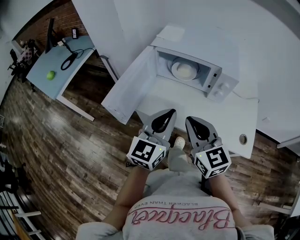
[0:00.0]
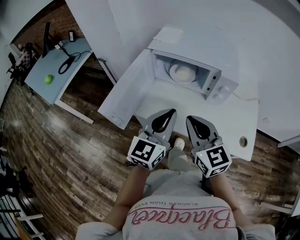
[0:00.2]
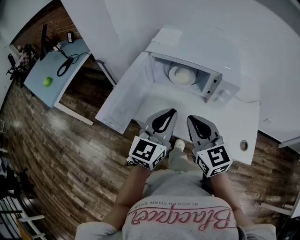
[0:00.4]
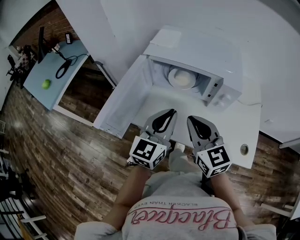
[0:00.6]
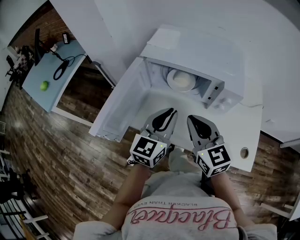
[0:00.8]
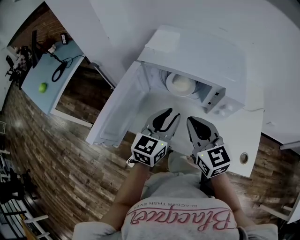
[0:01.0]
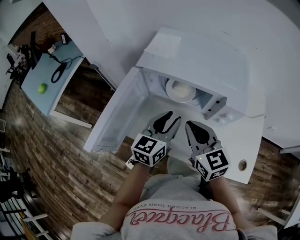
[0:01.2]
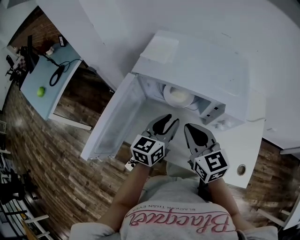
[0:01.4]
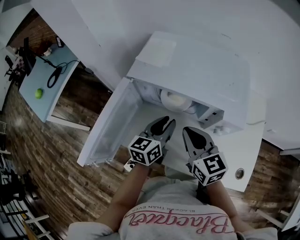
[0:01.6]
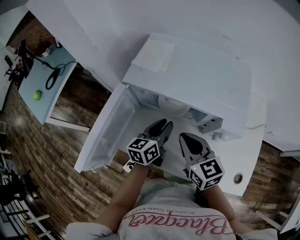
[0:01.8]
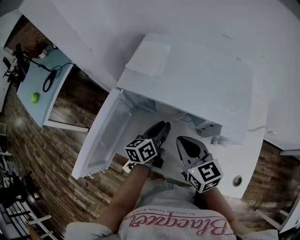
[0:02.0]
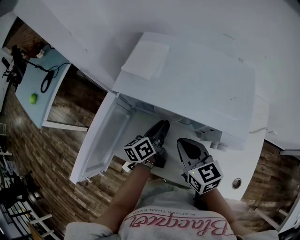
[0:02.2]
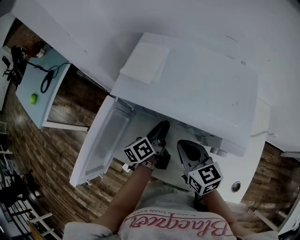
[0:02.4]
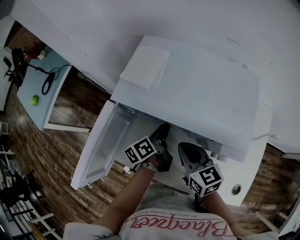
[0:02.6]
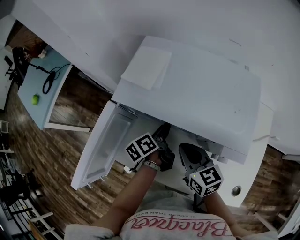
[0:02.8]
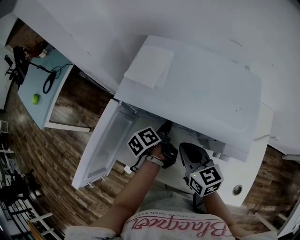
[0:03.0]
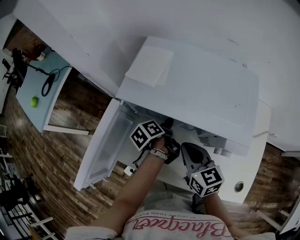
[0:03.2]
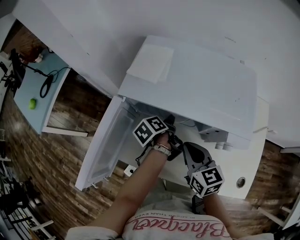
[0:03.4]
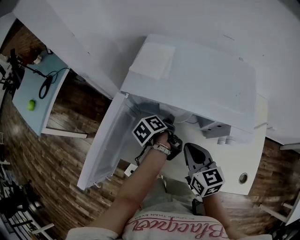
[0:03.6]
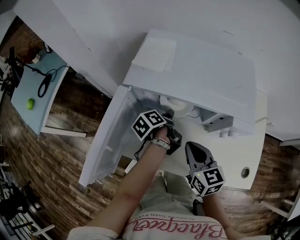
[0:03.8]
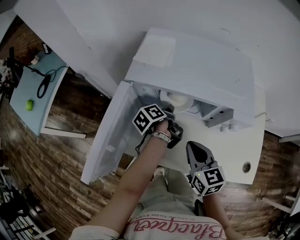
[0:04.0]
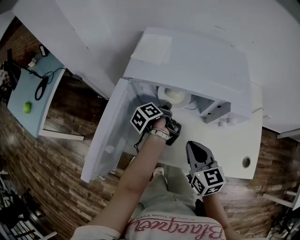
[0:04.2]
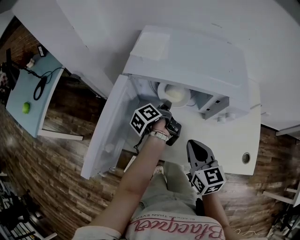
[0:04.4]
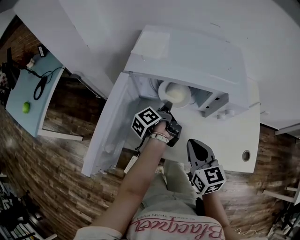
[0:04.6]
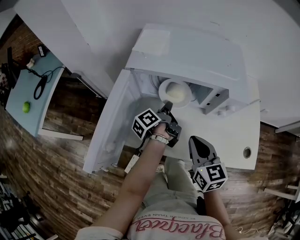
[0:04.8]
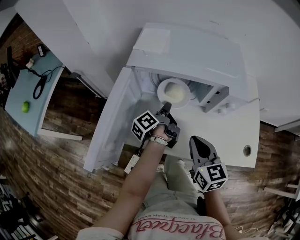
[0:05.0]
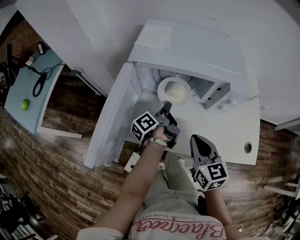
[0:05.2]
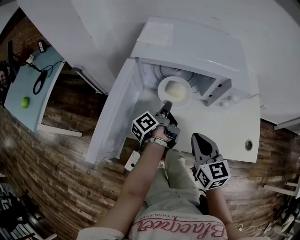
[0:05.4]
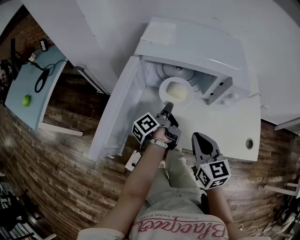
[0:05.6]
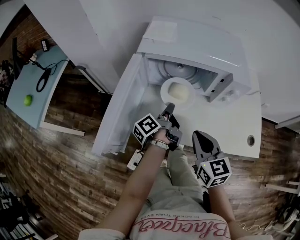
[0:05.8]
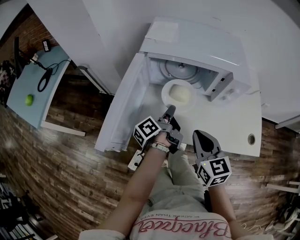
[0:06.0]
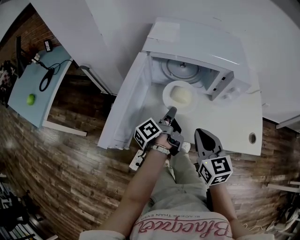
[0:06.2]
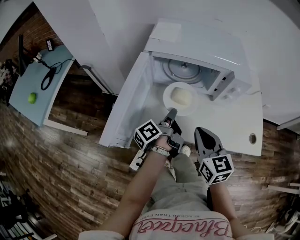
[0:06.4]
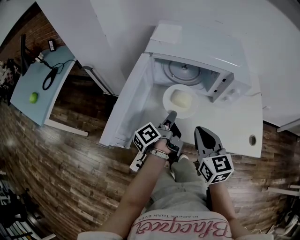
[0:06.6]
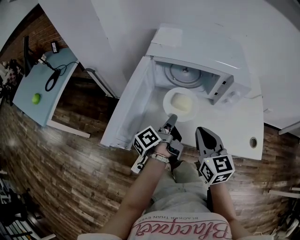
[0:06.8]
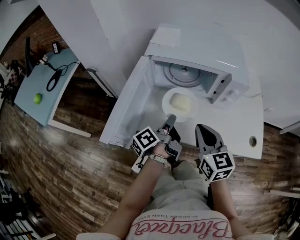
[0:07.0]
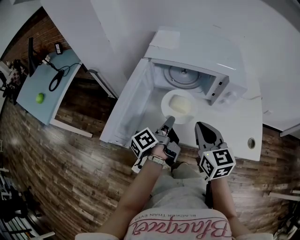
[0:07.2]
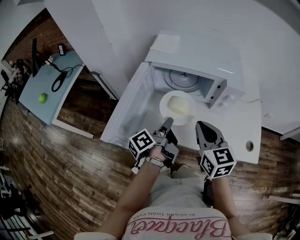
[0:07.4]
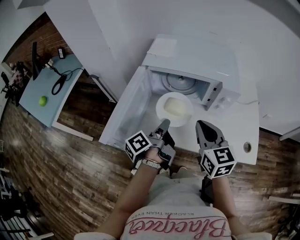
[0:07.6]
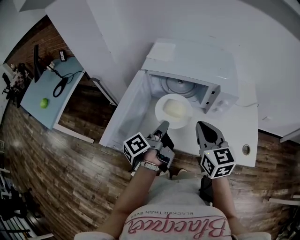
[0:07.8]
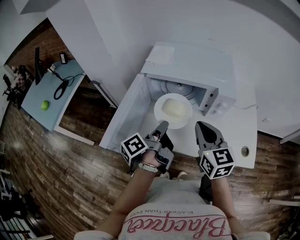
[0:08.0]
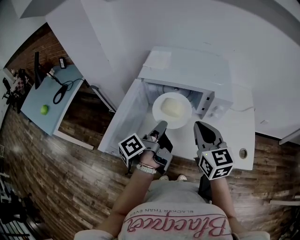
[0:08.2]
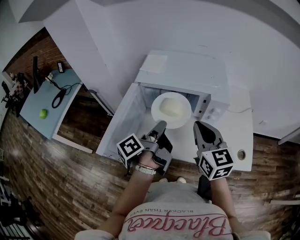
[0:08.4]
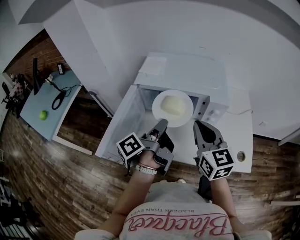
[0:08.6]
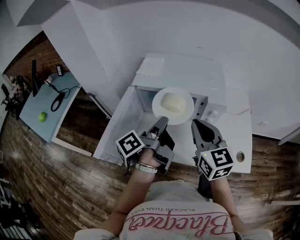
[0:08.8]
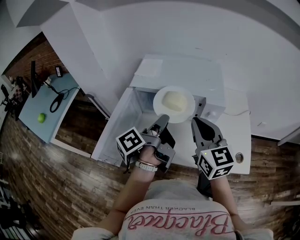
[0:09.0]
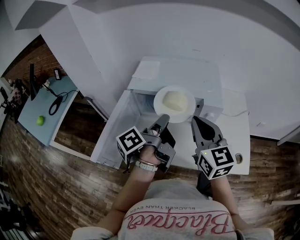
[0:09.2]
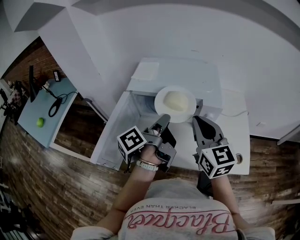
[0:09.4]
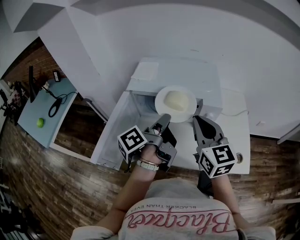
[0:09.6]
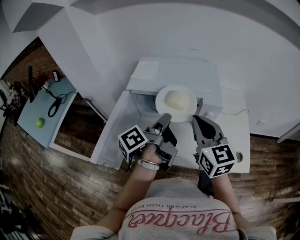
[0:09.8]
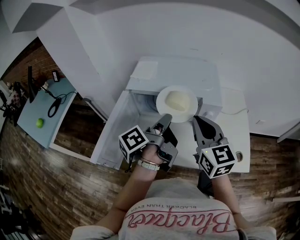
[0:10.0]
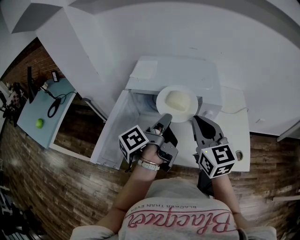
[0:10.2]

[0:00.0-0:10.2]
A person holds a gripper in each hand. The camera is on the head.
0:00.0 to 0:01.4: The right gripper travels forward by about 20 cm; the left gripper moves forward and downward, approximately 25 cm, turns by roughly 20 degrees, and opens.
0:01.4 to 0:03.0: The right gripper heads downward and forward, covering roughly 10 cm. Meanwhile the left gripper goes some 15 cm downward and forward, and rolls counterclockwise, seen from behind, by approximately 60 degrees.
0:03.0 to 0:04.4: The left gripper closes its fingers. Meanwhile the right gripper goes roughly 10 cm backward.
0:04.4 to 0:05.8: The left gripper goes approximately 10 cm backward; the right gripper heads backward, covering roughly 5 cm.
0:05.8 to 0:07.2: The left gripper heads backward, covering about 10 cm.
0:07.2 to 0:08.8: Both grippers move upward, about 15 cm.
0:08.8 to 0:10.2: The grippers make only small movements.

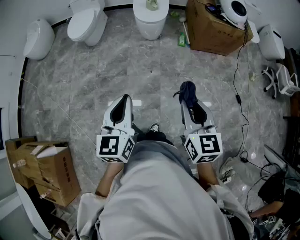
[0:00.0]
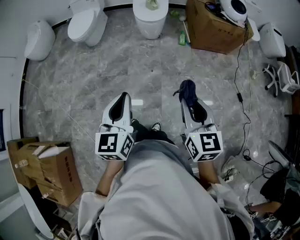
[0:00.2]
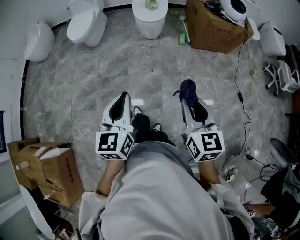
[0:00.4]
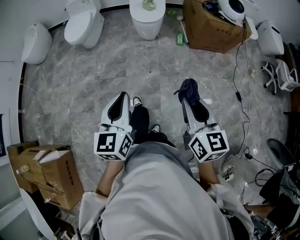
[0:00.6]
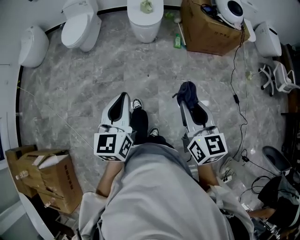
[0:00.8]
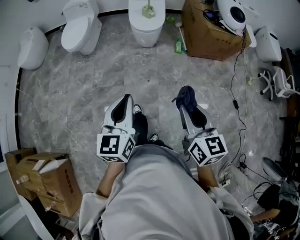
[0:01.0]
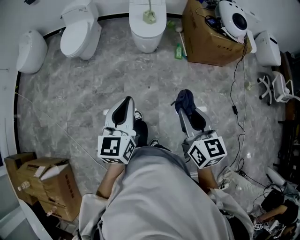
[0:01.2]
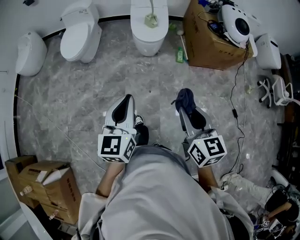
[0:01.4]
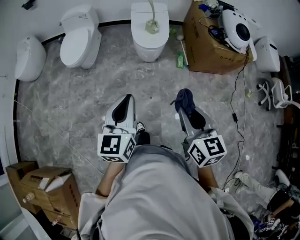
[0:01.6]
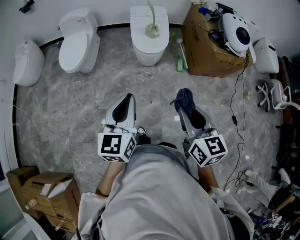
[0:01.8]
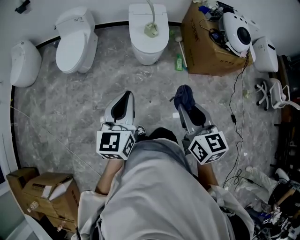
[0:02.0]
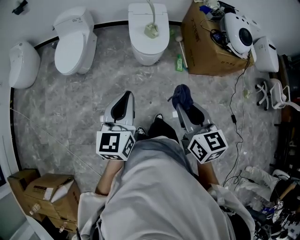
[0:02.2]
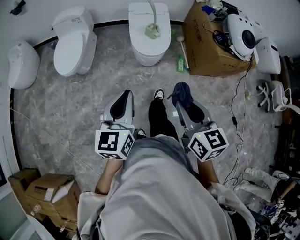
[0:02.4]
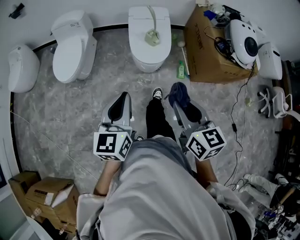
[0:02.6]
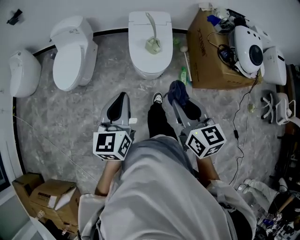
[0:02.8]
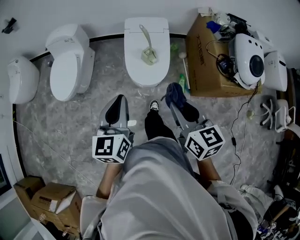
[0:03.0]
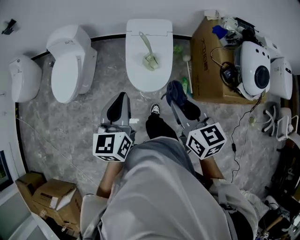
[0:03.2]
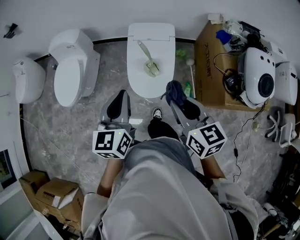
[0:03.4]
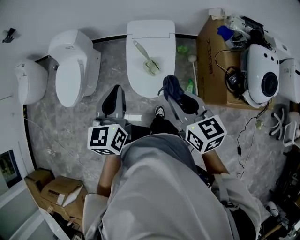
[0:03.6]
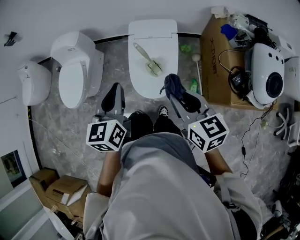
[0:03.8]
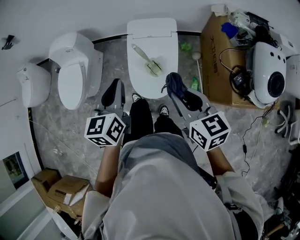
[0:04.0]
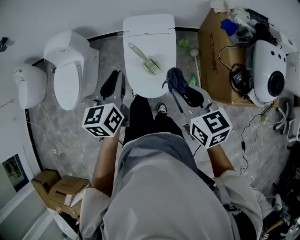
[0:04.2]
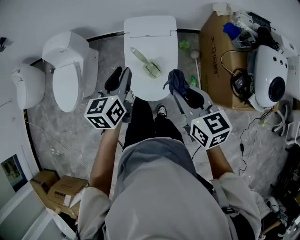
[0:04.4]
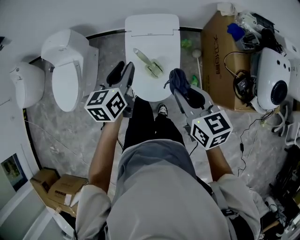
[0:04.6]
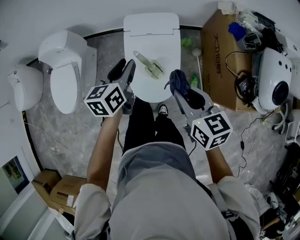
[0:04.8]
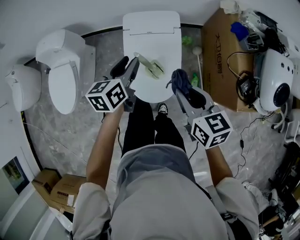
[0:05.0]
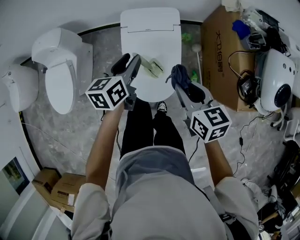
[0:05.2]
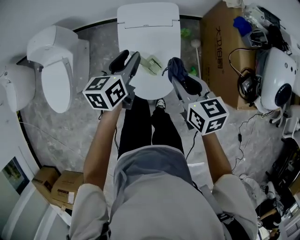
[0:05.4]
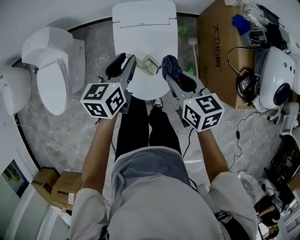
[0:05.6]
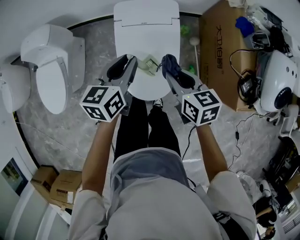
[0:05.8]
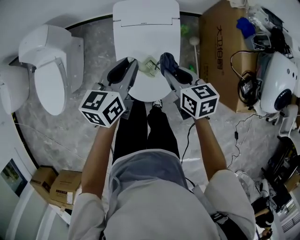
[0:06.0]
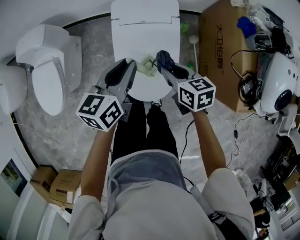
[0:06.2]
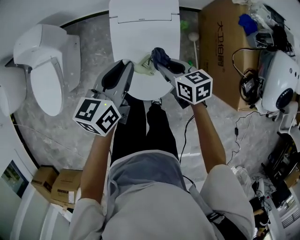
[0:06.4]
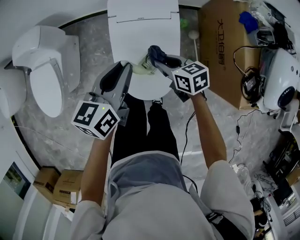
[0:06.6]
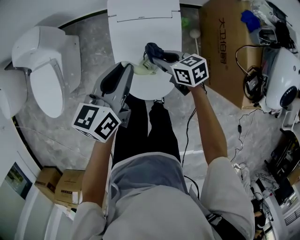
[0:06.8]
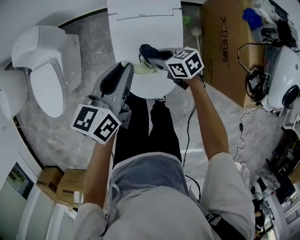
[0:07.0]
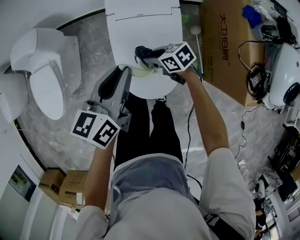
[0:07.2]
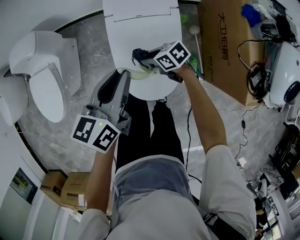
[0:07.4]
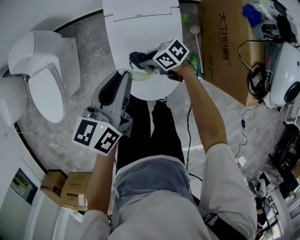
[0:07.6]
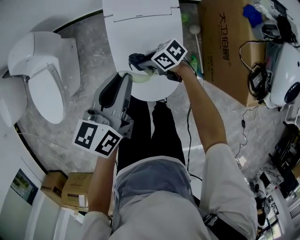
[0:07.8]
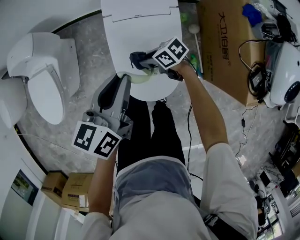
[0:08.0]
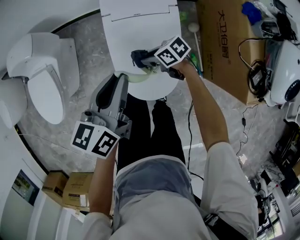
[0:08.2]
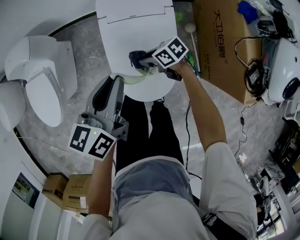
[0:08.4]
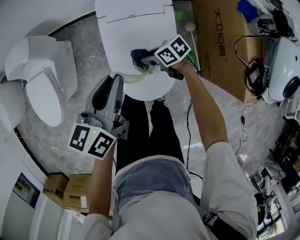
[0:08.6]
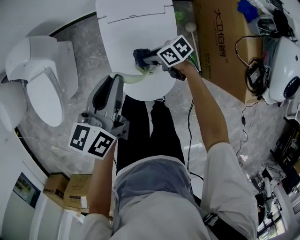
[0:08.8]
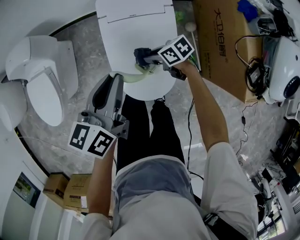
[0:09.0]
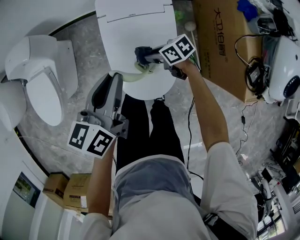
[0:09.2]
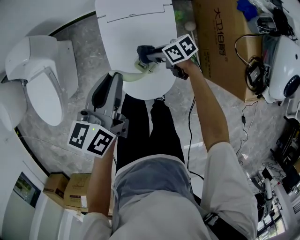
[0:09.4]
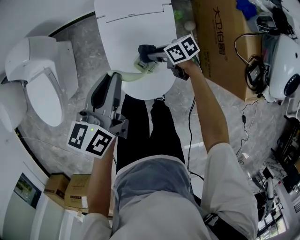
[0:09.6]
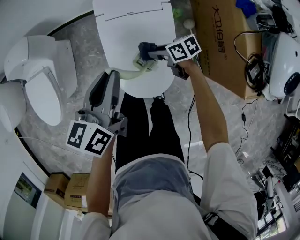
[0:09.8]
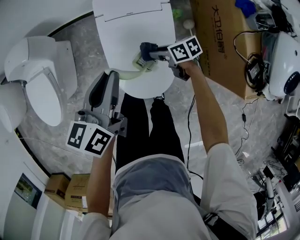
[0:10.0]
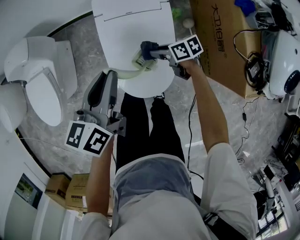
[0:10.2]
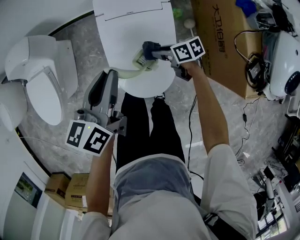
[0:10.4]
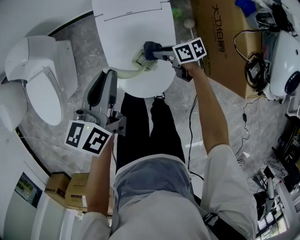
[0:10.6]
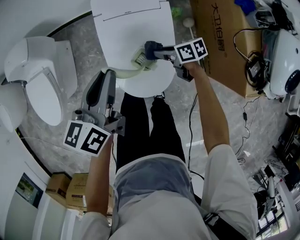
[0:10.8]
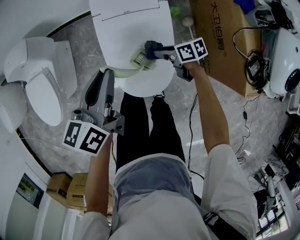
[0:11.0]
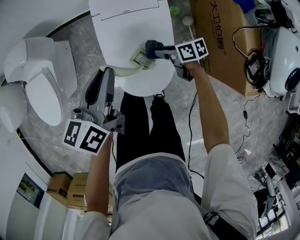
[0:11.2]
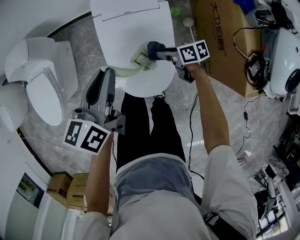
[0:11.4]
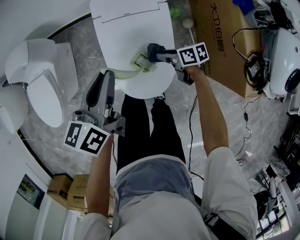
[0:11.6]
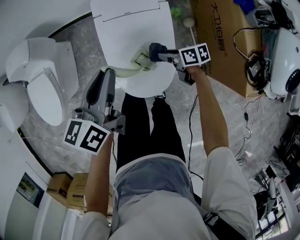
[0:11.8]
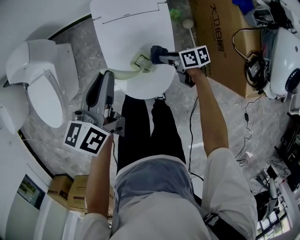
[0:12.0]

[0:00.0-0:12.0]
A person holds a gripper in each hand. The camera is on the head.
0:00.0 to 0:01.6: The grippers both shift forward by about 30 cm.
0:01.6 to 0:03.0: Both grippers are carried forward, about 40 cm.
0:03.0 to 0:04.4: The grippers both shift forward and to the right by some 30 cm.
0:04.4 to 0:06.0: The left gripper heads forward and downward, covering roughly 15 cm. Meanwhile the right gripper is displaced downward and forward by about 25 cm.
0:06.0 to 0:07.6: The right gripper heads downward, covering roughly 20 cm, and changes its angle by approximately 40 degrees.
0:07.6 to 0:09.0: The right gripper shifts by roughly 5 cm.
0:09.0 to 0:10.4: The grippers stay close to where they were, moving slightly.
0:10.4 to 0:12.0: There are only small adjustments of the grippers.

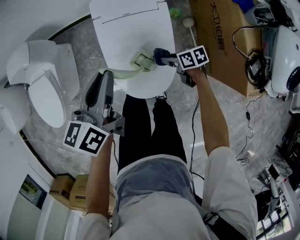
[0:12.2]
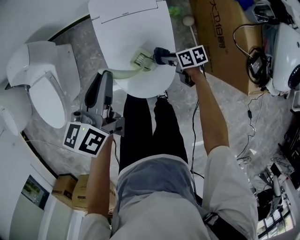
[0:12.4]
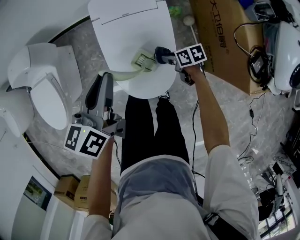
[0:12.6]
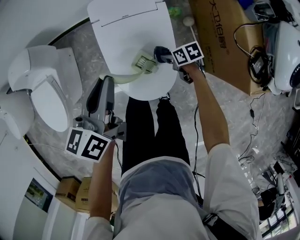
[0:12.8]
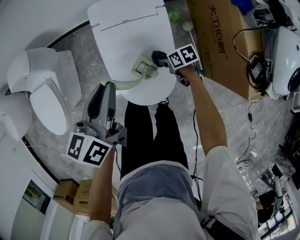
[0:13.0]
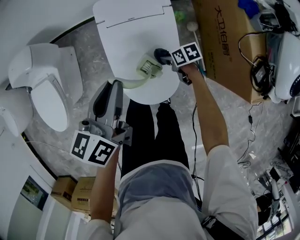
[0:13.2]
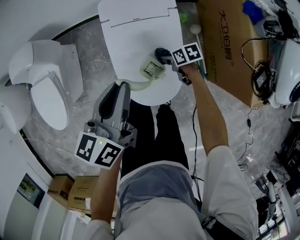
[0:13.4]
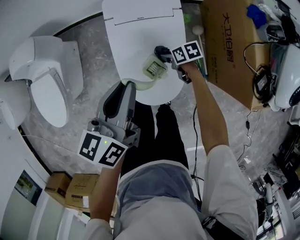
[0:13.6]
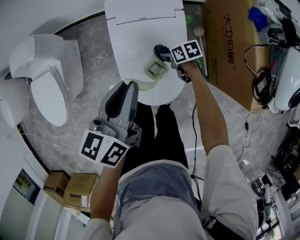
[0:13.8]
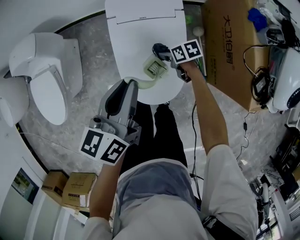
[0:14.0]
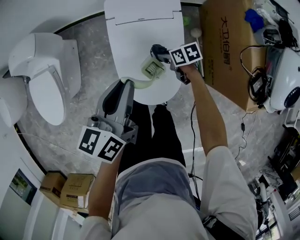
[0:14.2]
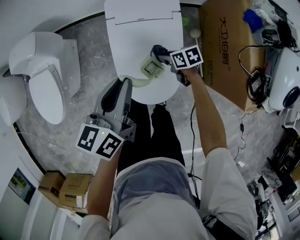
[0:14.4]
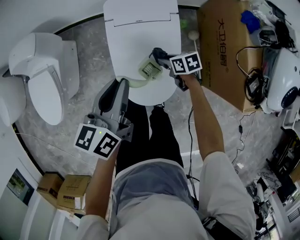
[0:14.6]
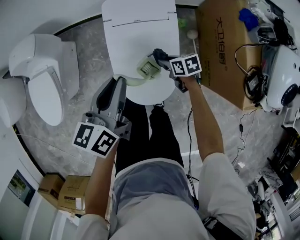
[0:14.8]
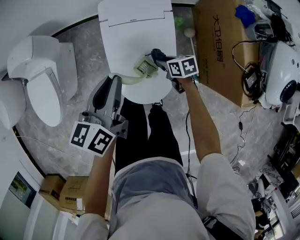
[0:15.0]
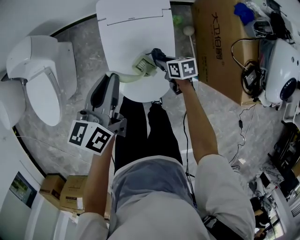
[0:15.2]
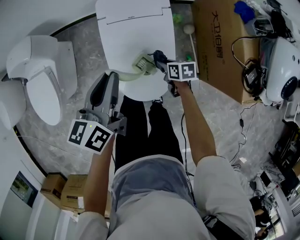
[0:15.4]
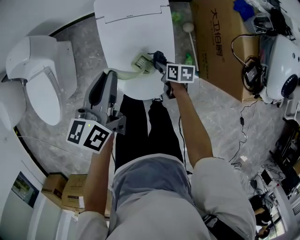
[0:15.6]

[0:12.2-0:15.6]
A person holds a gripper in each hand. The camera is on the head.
0:12.2 to 0:13.8: The right gripper heads forward, covering approximately 10 cm.
0:13.8 to 0:15.6: The right gripper moves backward, some 10 cm, and swivels some 30 degrees.
